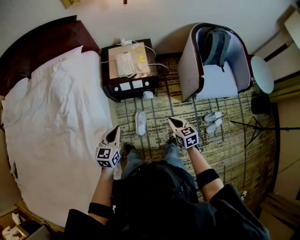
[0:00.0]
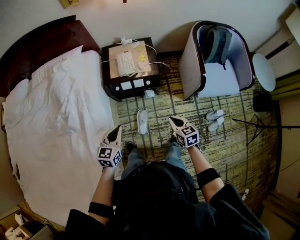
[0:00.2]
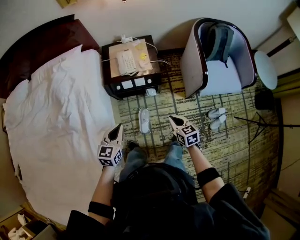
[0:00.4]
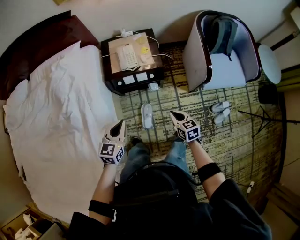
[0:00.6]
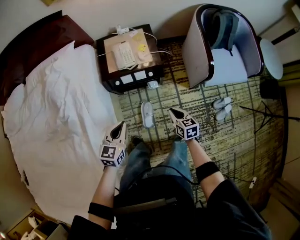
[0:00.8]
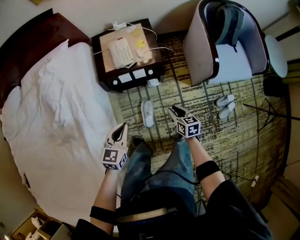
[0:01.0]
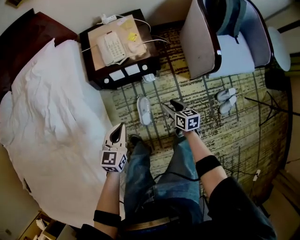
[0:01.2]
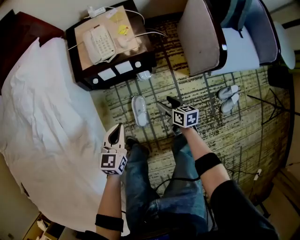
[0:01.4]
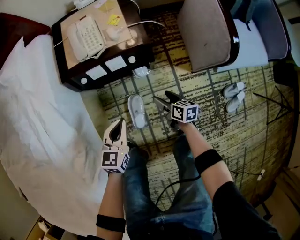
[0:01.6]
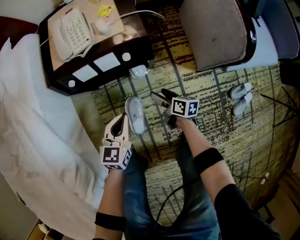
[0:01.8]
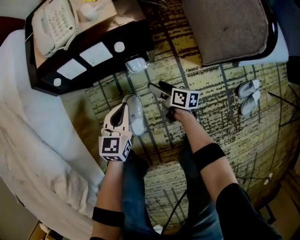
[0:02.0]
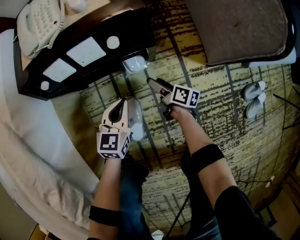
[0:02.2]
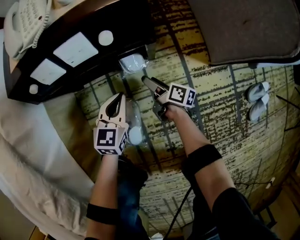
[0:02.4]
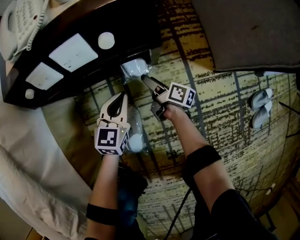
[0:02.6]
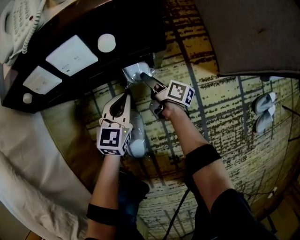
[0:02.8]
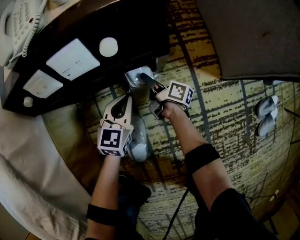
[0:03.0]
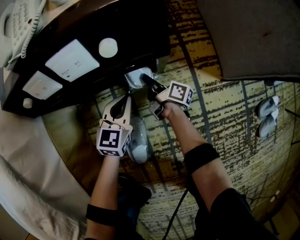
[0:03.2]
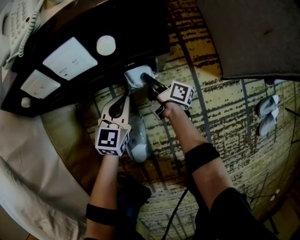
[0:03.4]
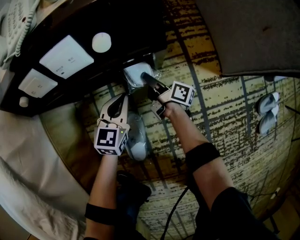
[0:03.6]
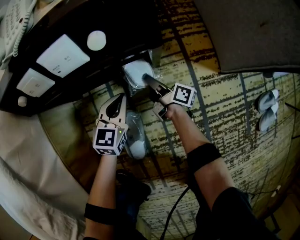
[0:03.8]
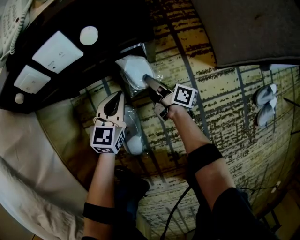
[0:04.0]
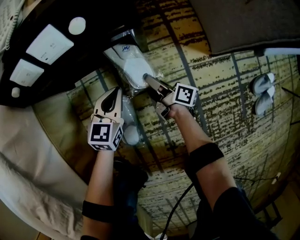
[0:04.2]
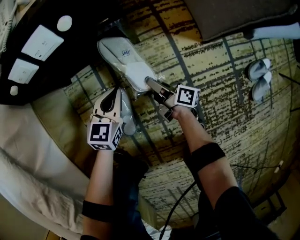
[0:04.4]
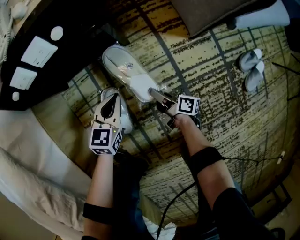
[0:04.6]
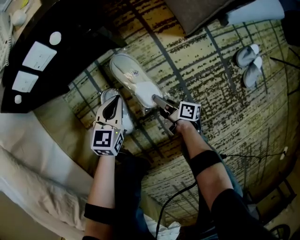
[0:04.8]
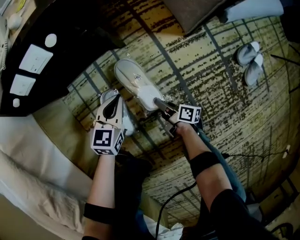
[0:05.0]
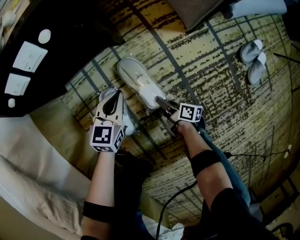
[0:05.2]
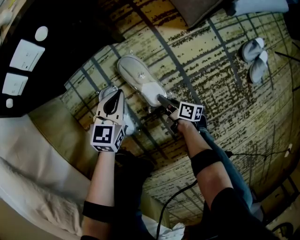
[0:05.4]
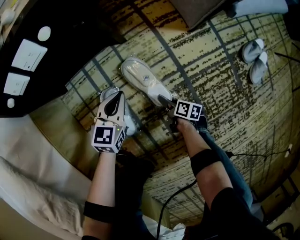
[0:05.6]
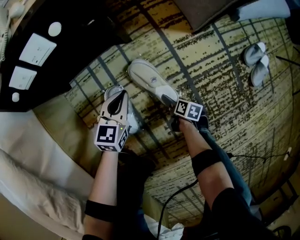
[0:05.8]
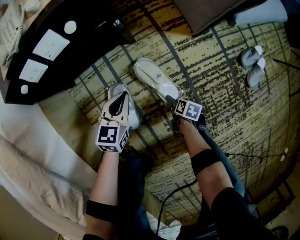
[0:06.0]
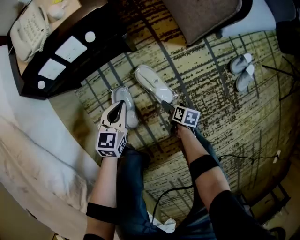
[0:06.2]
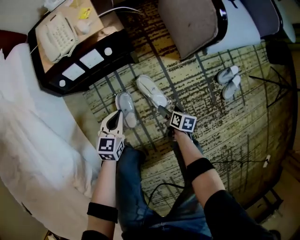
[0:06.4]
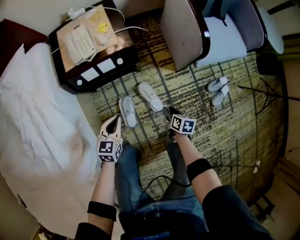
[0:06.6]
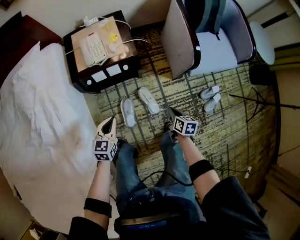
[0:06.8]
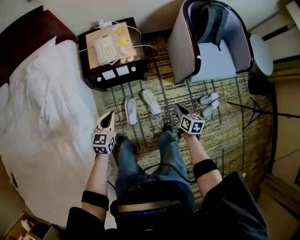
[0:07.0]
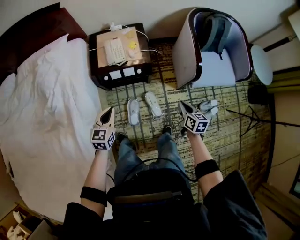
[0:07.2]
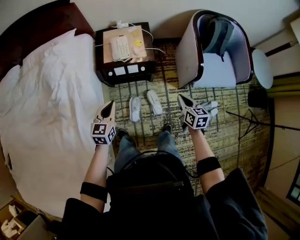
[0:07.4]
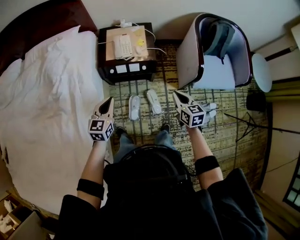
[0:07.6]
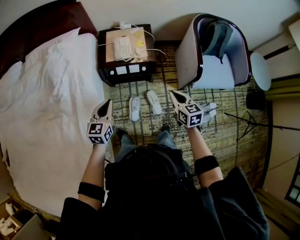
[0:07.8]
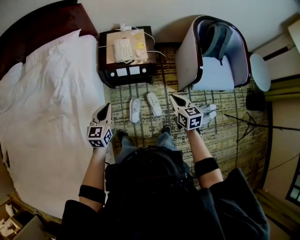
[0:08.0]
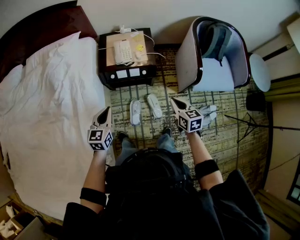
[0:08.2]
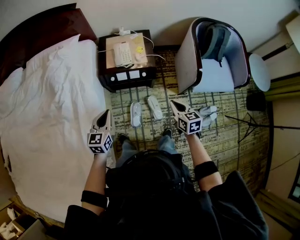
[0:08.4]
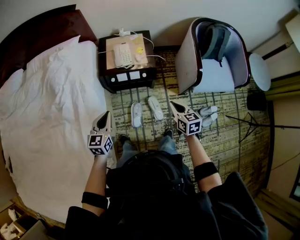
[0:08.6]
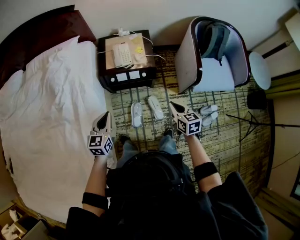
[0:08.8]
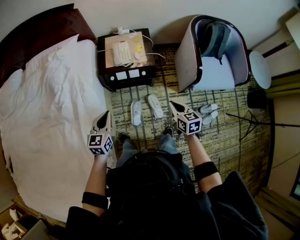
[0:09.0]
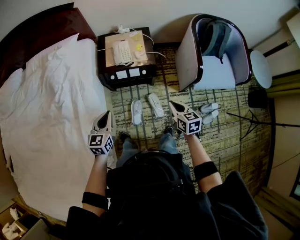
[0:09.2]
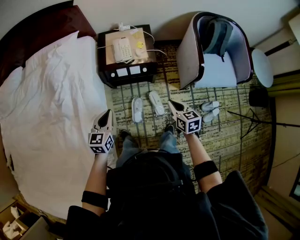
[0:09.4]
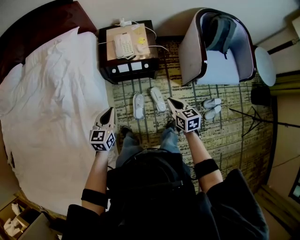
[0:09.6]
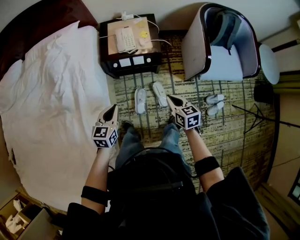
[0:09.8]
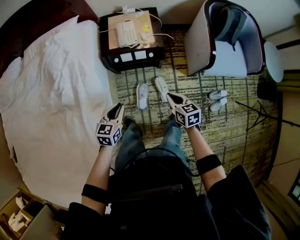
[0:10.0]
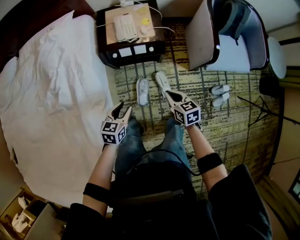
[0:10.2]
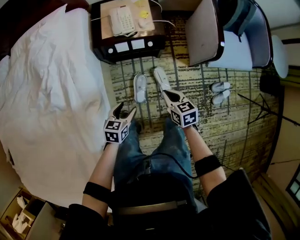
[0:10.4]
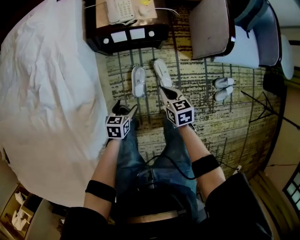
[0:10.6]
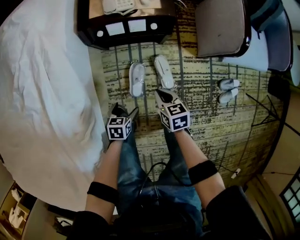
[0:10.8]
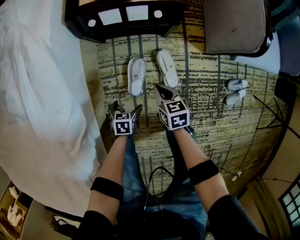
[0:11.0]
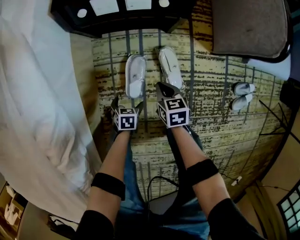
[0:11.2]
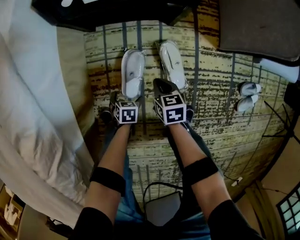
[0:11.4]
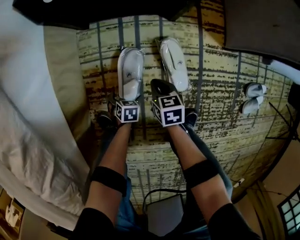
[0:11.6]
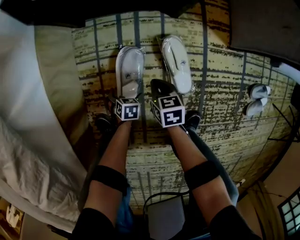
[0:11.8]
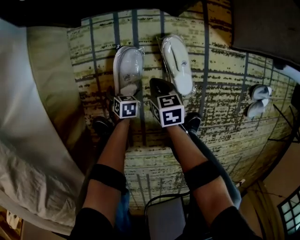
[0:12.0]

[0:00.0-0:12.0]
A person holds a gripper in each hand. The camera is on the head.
0:00.0 to 0:01.6: Both grippers travel together downward, some 35 cm. The right gripper turns by approximately 30 degrees, and opens.
0:01.6 to 0:03.0: The right gripper heads downward and forward, covering about 35 cm, and turns by roughly 40 degrees; the left gripper shifts some 35 cm downward.
0:03.0 to 0:04.4: The left gripper moves backward, some 10 cm, while the right gripper is displaced backward and to the right by some 20 cm, and closes up.
0:04.4 to 0:06.0: The left gripper moves some 5 cm, while the right gripper heads backward, to the right and downward, covering about 25 cm, angles its fingers downward, by roughly 60 degrees, and opens up.
0:06.0 to 0:07.6: Both grippers travel together upward, some 80 cm. The left gripper changes its angle by approximately 30 degrees. Meanwhile the right gripper rotates around the line of its fingers by approximately 60 degrees, counterclockwise from behind, and closes up.
0:07.6 to 0:09.0: There are only small adjustments of the grippers.
0:09.0 to 0:10.4: The right gripper heads downward and to the left, covering some 15 cm; the left gripper moves downward, some 20 cm, turns by some 30 degrees, and opens its fingers.
0:10.4 to 0:12.0: Both grippers move downward, roughly 70 cm. The left gripper turns by about 30 degrees, and opens up.

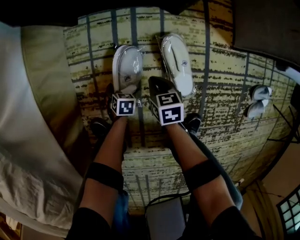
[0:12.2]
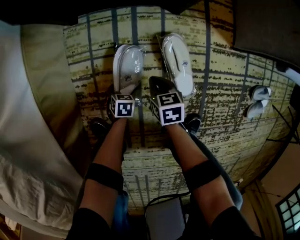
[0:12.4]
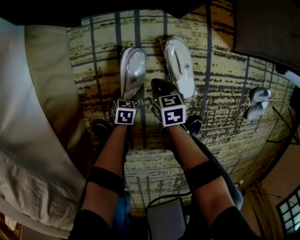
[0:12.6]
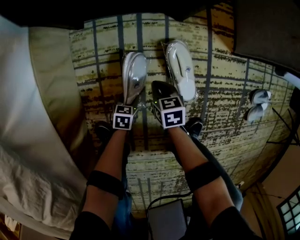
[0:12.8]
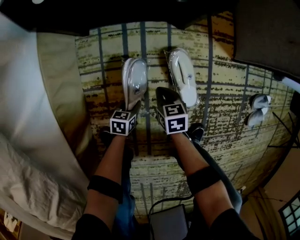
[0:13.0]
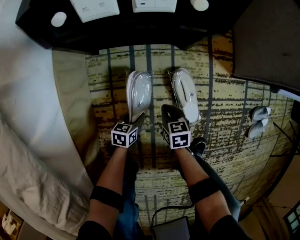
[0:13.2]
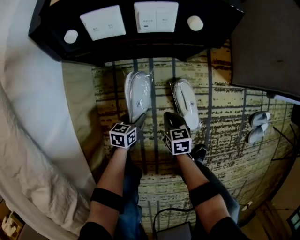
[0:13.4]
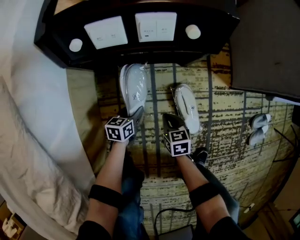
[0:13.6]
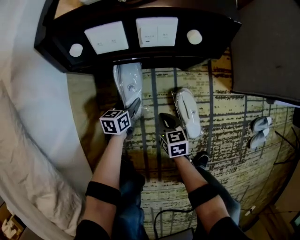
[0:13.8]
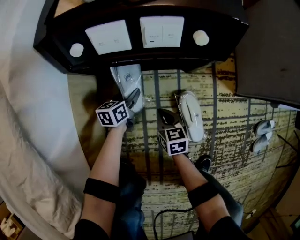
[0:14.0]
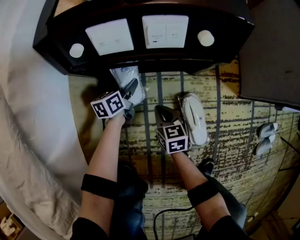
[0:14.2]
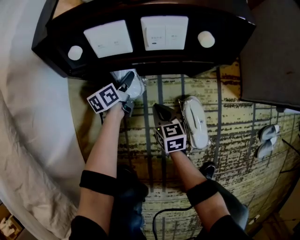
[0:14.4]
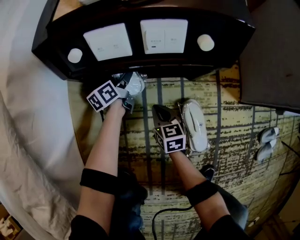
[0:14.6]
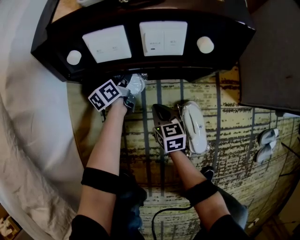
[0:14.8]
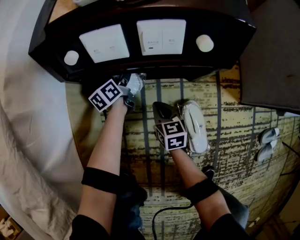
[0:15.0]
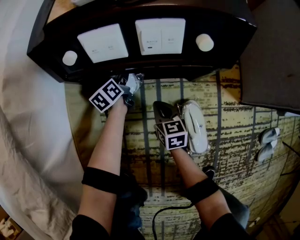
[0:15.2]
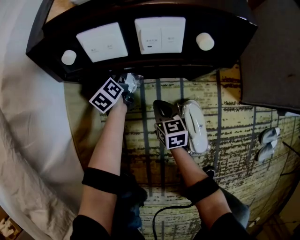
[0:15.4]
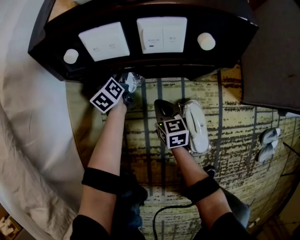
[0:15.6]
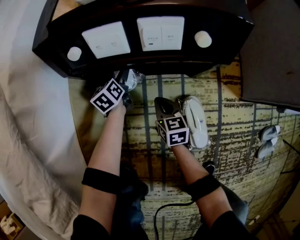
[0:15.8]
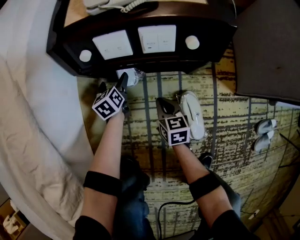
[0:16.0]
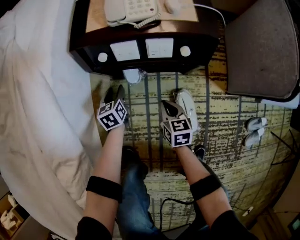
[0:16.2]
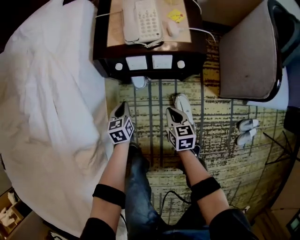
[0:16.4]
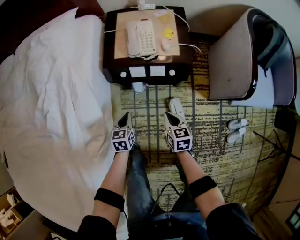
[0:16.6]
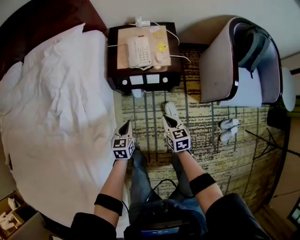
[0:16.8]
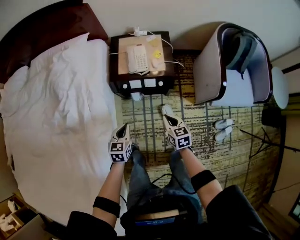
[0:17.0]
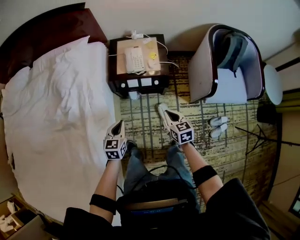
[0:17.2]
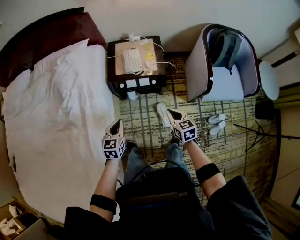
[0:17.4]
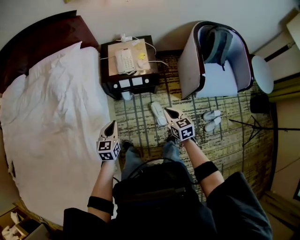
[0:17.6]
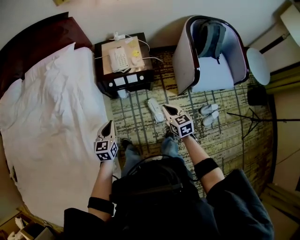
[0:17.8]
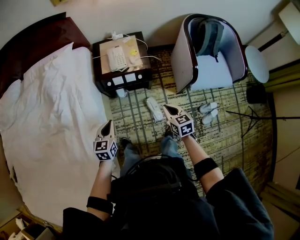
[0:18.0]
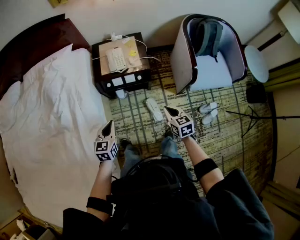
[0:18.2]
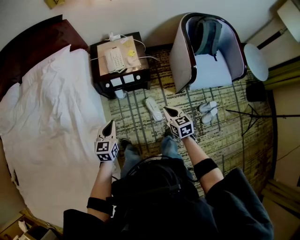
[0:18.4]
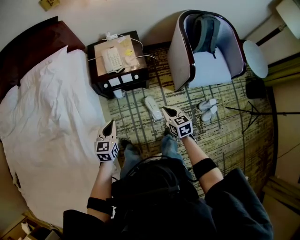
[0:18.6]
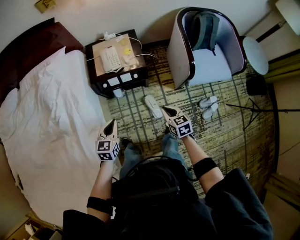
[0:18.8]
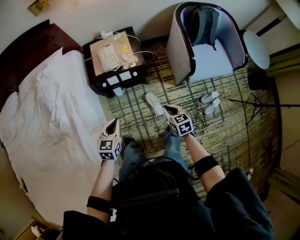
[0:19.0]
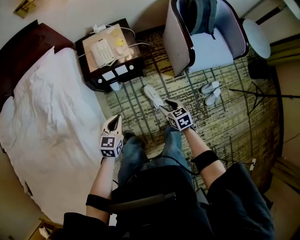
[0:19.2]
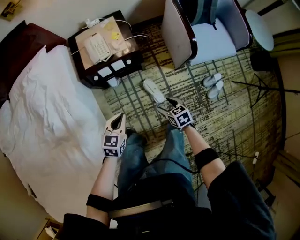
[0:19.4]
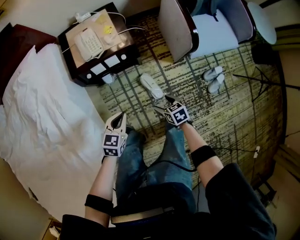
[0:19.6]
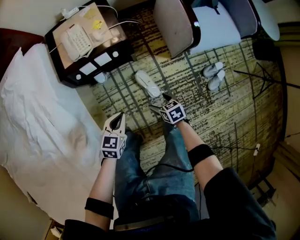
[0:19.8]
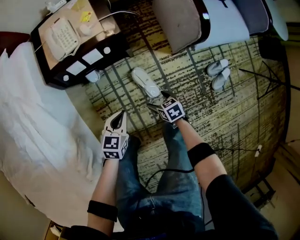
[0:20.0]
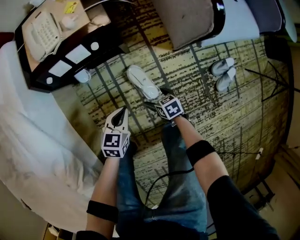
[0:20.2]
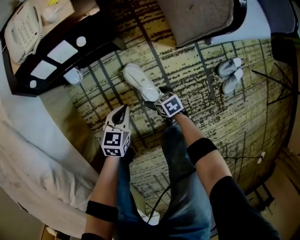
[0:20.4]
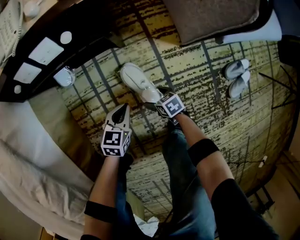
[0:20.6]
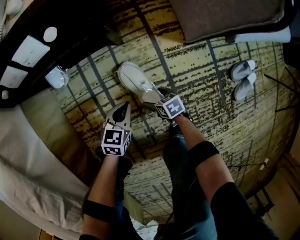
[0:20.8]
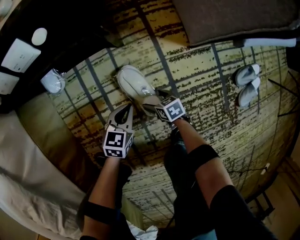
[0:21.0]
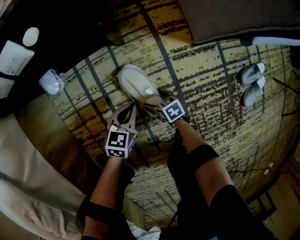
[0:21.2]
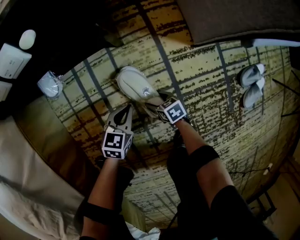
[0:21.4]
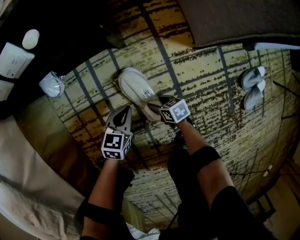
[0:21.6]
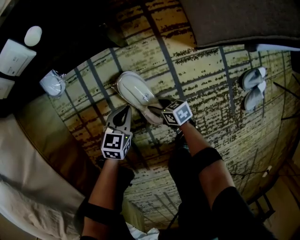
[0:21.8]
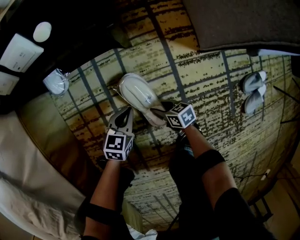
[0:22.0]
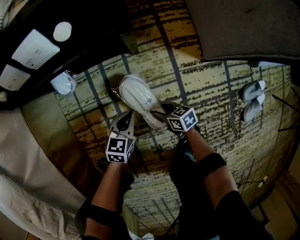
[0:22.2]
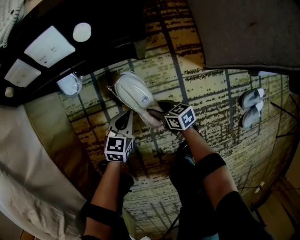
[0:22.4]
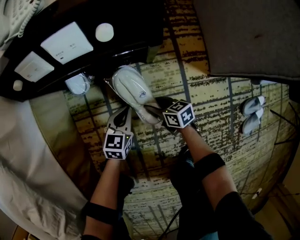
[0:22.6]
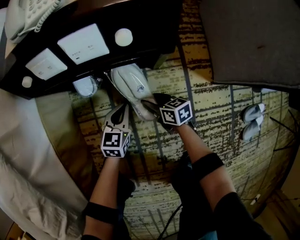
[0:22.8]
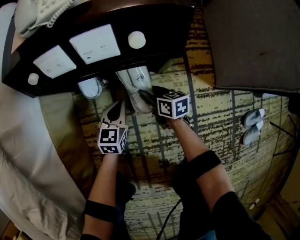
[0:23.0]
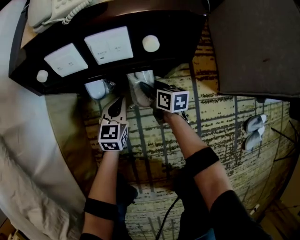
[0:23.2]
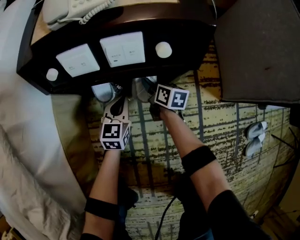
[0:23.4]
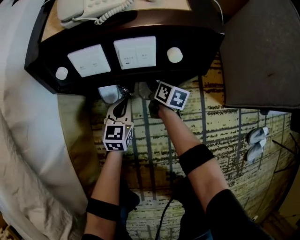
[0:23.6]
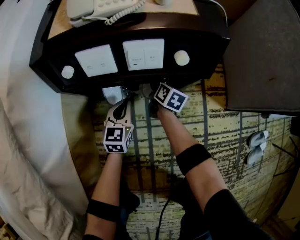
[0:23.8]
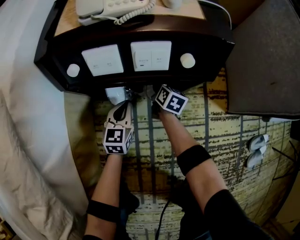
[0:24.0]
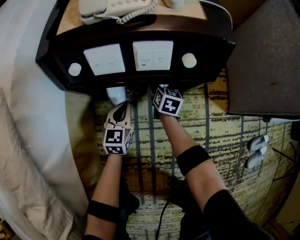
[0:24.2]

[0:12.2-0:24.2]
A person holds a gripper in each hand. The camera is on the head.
0:12.2 to 0:13.8: The right gripper ends up roughly 10 cm from where it was. Meanwhile the left gripper ends up about 30 cm from where it was, angles its fingers upward, by about 30 degrees, and closes its fingers.
0:13.8 to 0:15.2: The left gripper goes approximately 20 cm forward, and swivels approximately 30 degrees, while the right gripper heads forward, covering approximately 10 cm.
0:15.2 to 0:16.6: The left gripper travels upward and backward by approximately 50 cm, rotates approximately 30 degrees, and closes its fingers, while the right gripper goes some 40 cm upward.
0:16.6 to 0:18.2: The left gripper moves upward, some 35 cm. The right gripper goes roughly 35 cm upward, backward and to the right.
0:18.2 to 0:19.8: The left gripper heads downward and to the right, covering some 25 cm, and changes its angle by roughly 30 degrees. Meanwhile the right gripper moves downward, approximately 30 cm, swivels approximately 30 degrees, and opens.
0:19.8 to 0:21.2: Both grippers travel together downward, approximately 50 cm.
0:21.2 to 0:22.6: The left gripper goes approximately 15 cm forward and to the left. The right gripper shifts approximately 20 cm forward, upward and to the left, and closes.
0:22.6 to 0:24.2: The right gripper goes some 25 cm forward, and turns by about 40 degrees, while the left gripper shifts about 20 cm to the left, forward and upward, and turns by some 20 degrees.
